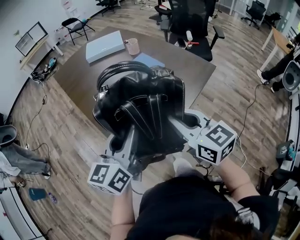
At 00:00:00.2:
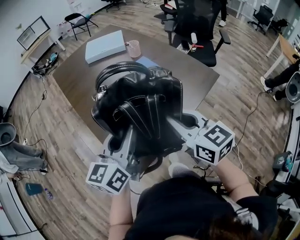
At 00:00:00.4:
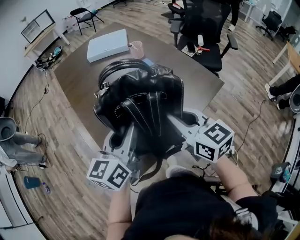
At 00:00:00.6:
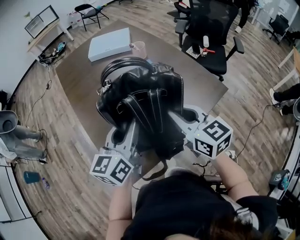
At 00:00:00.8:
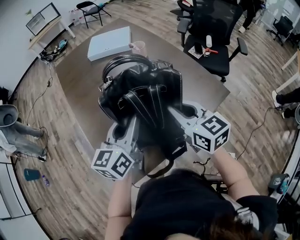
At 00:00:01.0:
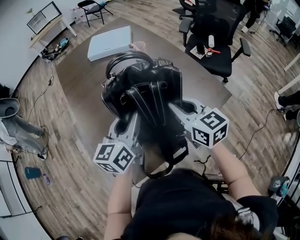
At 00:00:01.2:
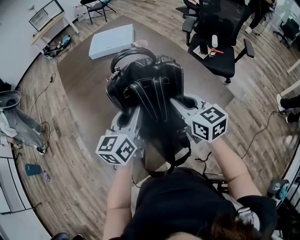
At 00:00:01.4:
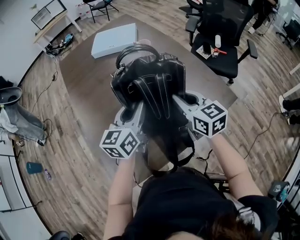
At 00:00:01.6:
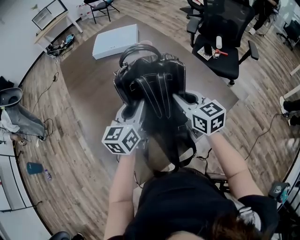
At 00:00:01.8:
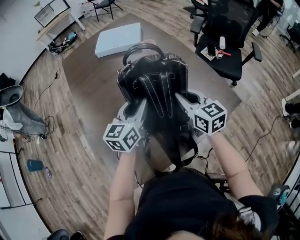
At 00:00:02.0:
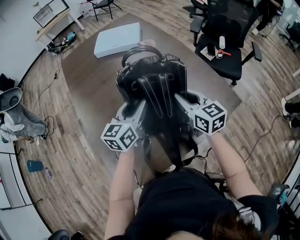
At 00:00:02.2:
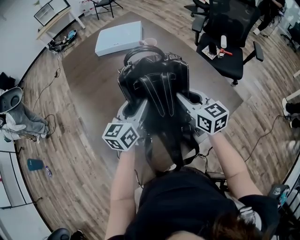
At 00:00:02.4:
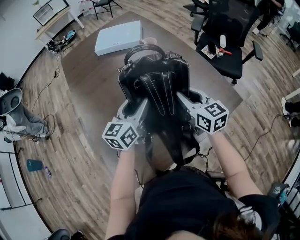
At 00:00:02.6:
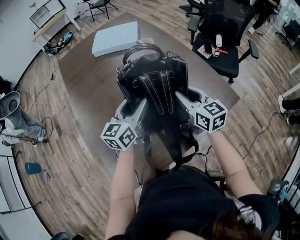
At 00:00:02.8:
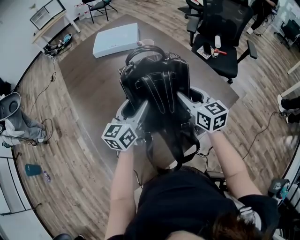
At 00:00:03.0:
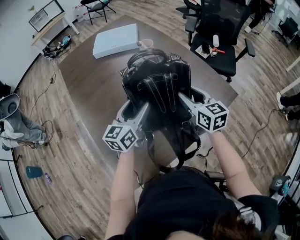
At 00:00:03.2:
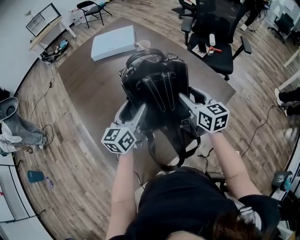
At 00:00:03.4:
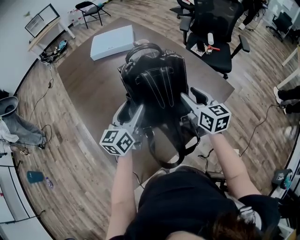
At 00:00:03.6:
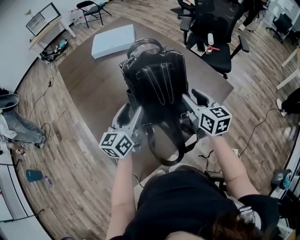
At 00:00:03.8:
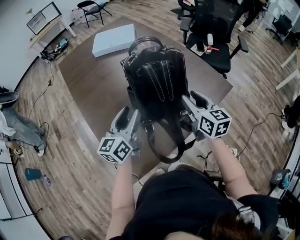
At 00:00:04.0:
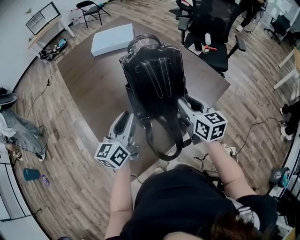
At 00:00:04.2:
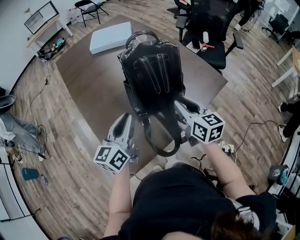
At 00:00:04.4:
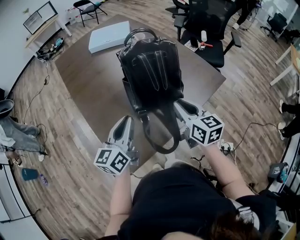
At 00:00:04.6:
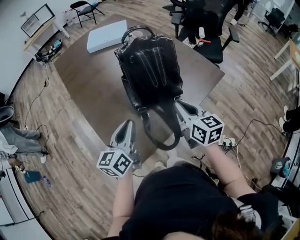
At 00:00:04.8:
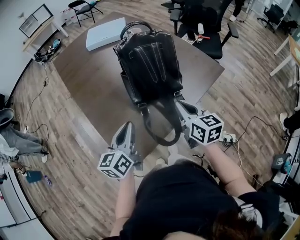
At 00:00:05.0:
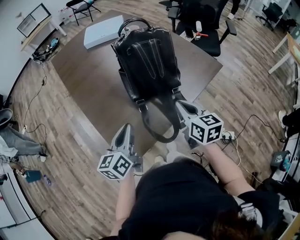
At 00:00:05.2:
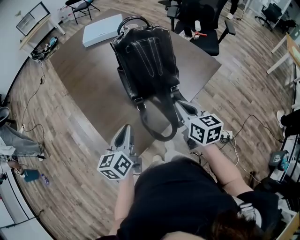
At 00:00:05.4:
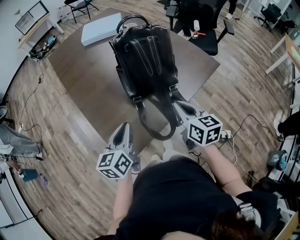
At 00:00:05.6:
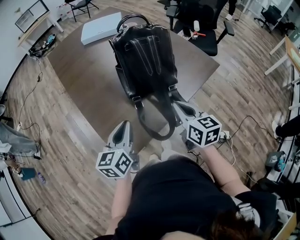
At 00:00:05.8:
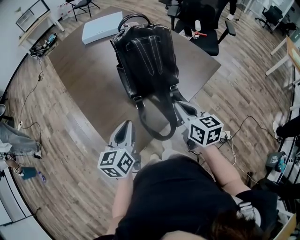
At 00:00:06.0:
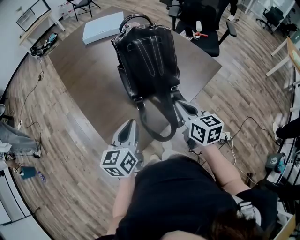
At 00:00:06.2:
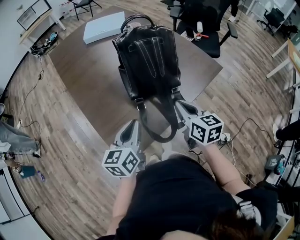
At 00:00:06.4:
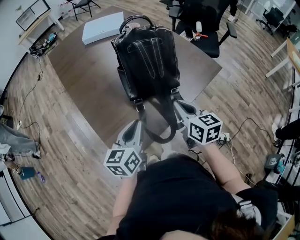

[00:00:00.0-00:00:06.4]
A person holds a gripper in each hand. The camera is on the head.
00:00:00.0 to 00:00:01.6: Both grippers travel together forward and to the right, some 30 cm.
00:00:01.6 to 00:00:03.2: The left gripper opens; the right gripper opens up.
00:00:03.2 to 00:00:04.8: The grippers both shift backward by roughly 20 cm. The left gripper closes; the right gripper closes its fingers.
00:00:04.8 to 00:00:06.4: There are only small adjustments of the grippers.

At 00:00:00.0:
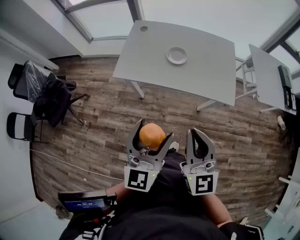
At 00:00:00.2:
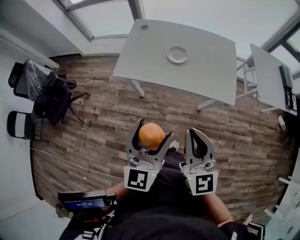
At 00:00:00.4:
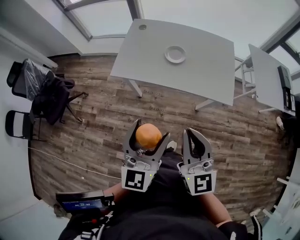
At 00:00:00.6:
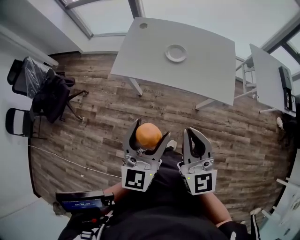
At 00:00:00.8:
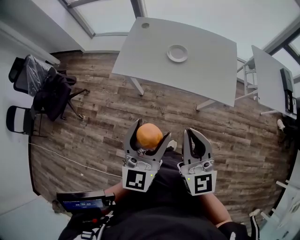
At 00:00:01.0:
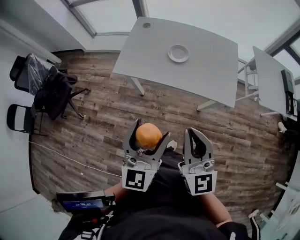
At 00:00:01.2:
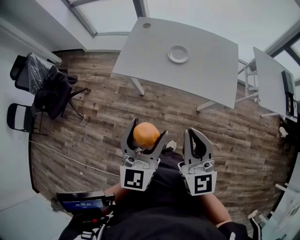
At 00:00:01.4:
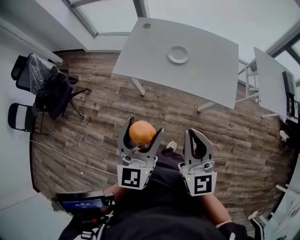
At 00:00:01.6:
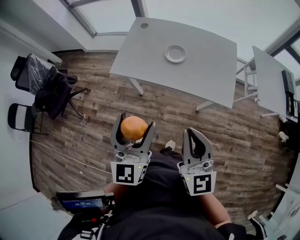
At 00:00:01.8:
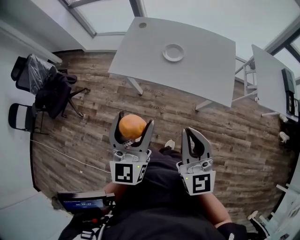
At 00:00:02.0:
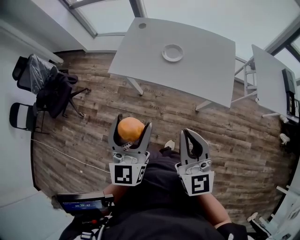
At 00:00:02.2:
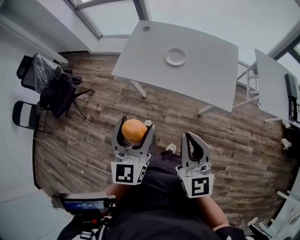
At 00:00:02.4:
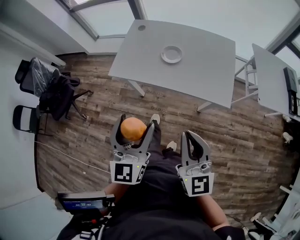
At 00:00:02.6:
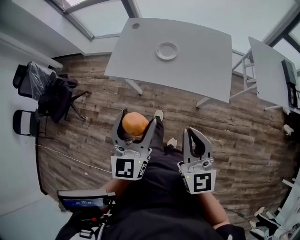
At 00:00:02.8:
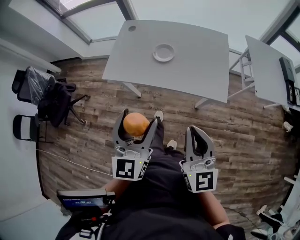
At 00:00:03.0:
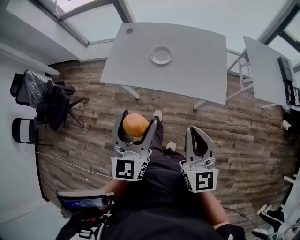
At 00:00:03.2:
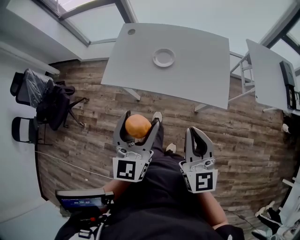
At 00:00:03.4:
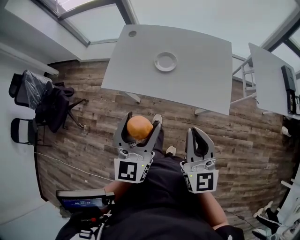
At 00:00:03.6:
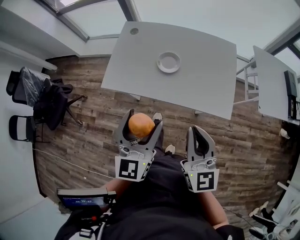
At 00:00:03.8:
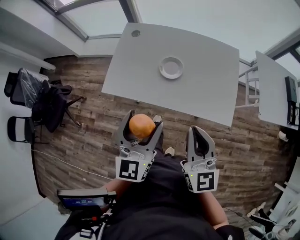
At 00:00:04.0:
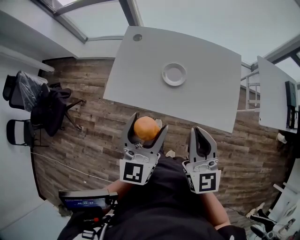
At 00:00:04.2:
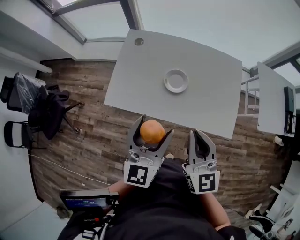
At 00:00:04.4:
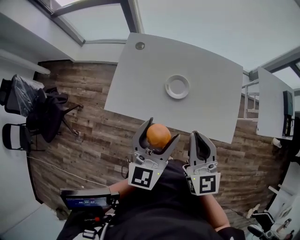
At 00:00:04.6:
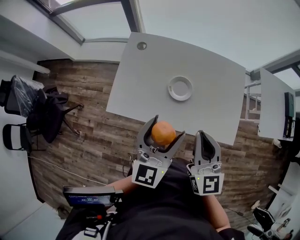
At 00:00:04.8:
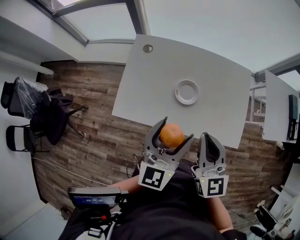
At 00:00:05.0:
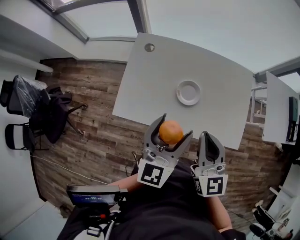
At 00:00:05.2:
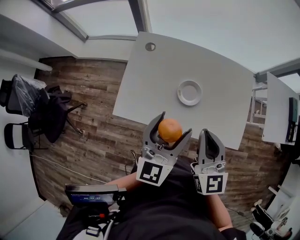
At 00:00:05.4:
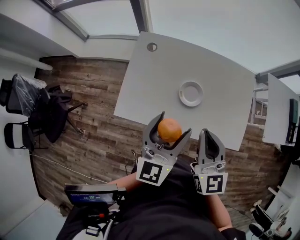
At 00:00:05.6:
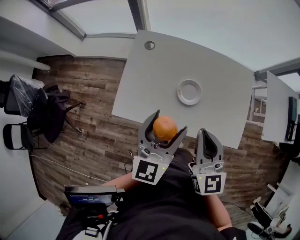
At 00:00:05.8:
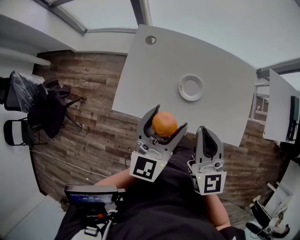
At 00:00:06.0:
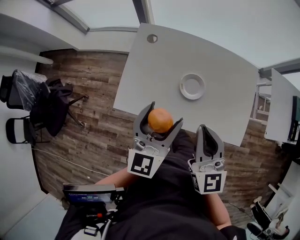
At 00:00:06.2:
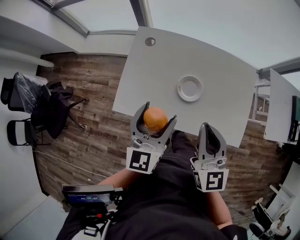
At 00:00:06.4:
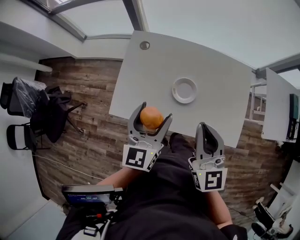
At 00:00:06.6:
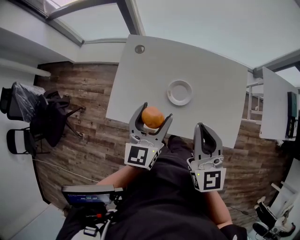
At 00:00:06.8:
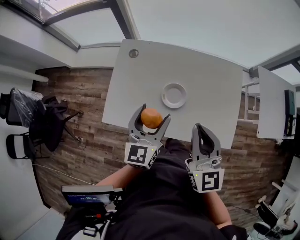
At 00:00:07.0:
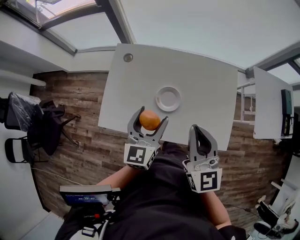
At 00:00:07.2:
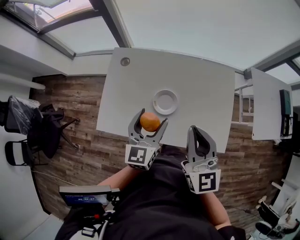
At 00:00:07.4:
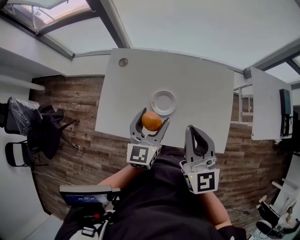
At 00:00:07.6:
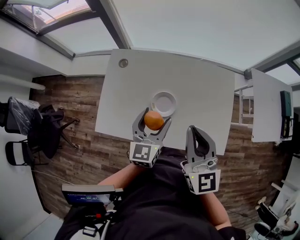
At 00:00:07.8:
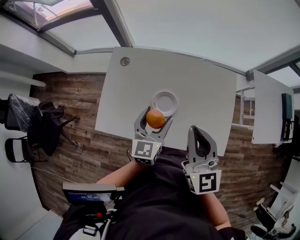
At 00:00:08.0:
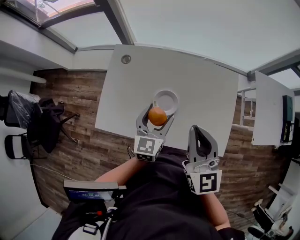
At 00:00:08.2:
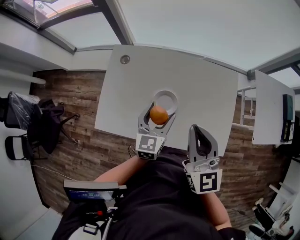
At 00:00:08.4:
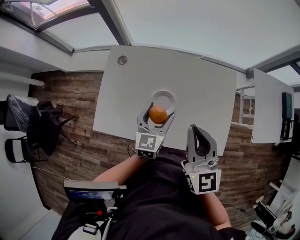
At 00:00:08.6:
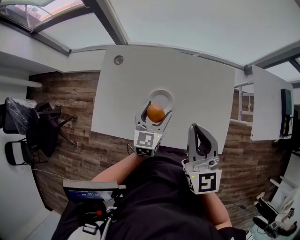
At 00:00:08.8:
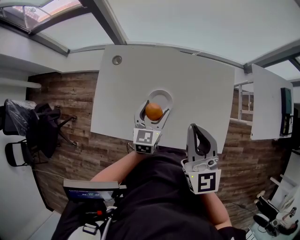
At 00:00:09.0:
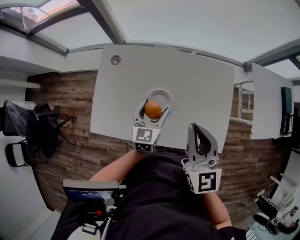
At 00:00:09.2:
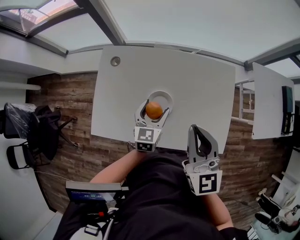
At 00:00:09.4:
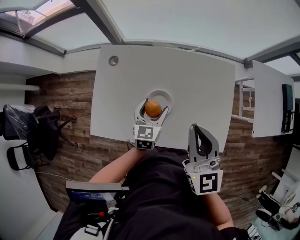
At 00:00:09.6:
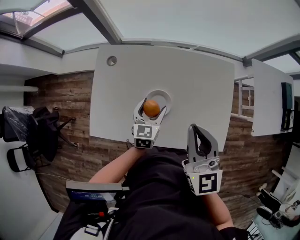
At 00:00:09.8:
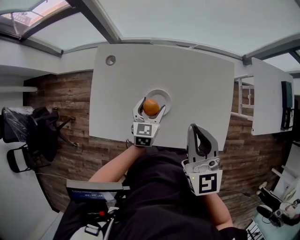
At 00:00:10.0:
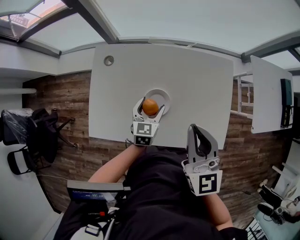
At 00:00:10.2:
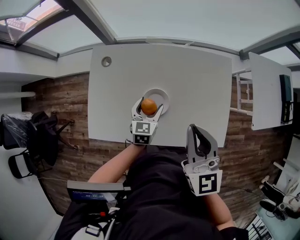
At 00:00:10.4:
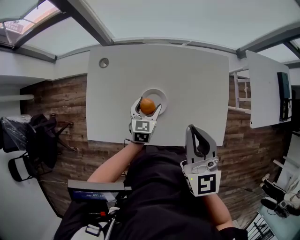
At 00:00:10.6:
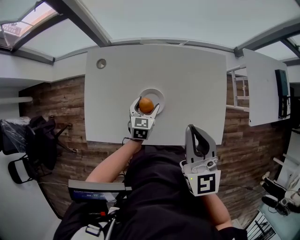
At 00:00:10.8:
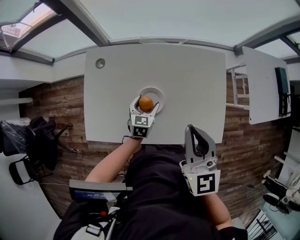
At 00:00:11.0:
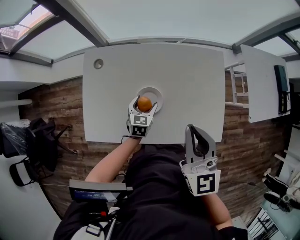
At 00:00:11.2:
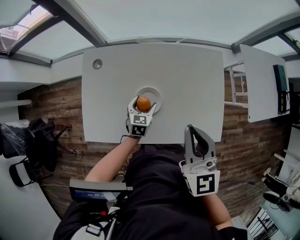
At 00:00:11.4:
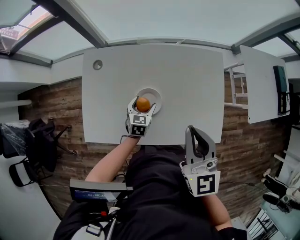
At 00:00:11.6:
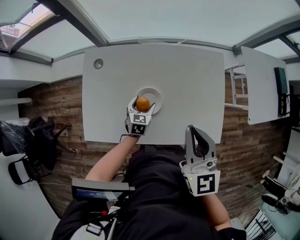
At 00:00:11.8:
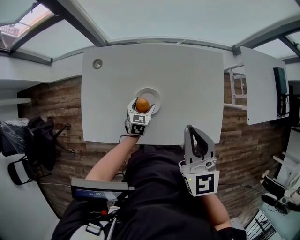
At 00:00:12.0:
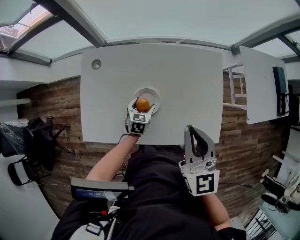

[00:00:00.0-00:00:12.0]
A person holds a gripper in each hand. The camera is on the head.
00:00:00.0 to 00:00:01.6: There are only small adjustments of the grippers.
00:00:01.6 to 00:00:03.0: Both grippers travel together to the right, approximately 10 cm.
00:00:03.0 to 00:00:04.4: The left gripper moves forward, roughly 20 cm. Meanwhile the right gripper shifts some 25 cm forward and to the left.
00:00:04.4 to 00:00:06.0: The grippers both shift forward and to the left by approximately 10 cm.
00:00:06.0 to 00:00:07.6: The left gripper moves to the right, forward and downward, some 15 cm. Meanwhile the right gripper heads to the right and forward, covering some 10 cm.
00:00:07.6 to 00:00:09.0: The left gripper is displaced downward and forward by roughly 10 cm.
00:00:09.0 to 00:00:10.4: The left gripper is displaced downward by some 10 cm.
00:00:10.4 to 00:00:12.0: The left gripper travels downward by about 10 cm.

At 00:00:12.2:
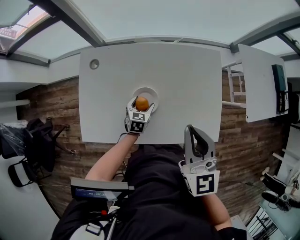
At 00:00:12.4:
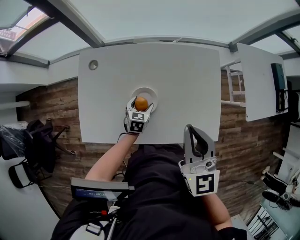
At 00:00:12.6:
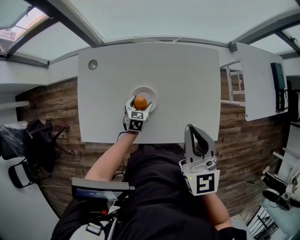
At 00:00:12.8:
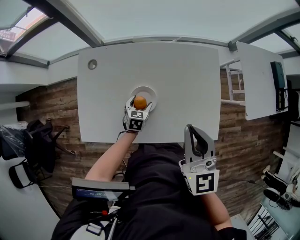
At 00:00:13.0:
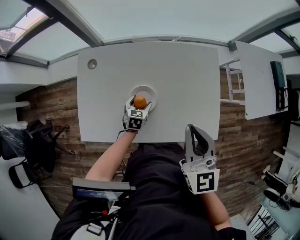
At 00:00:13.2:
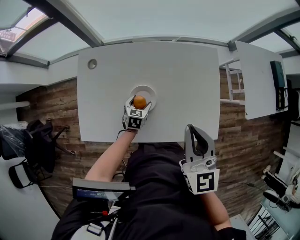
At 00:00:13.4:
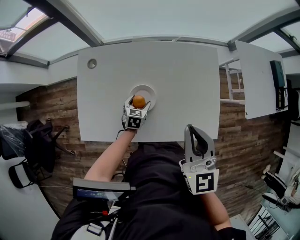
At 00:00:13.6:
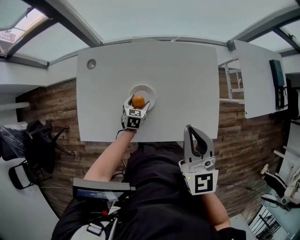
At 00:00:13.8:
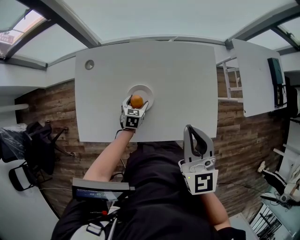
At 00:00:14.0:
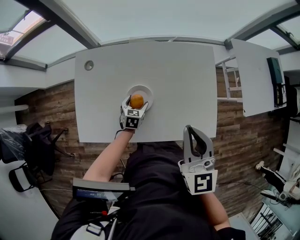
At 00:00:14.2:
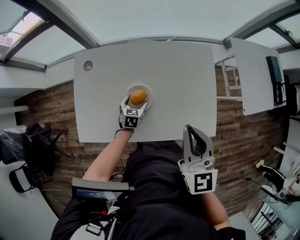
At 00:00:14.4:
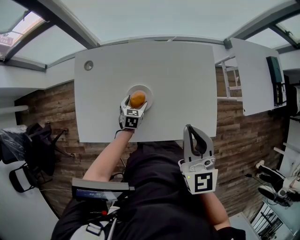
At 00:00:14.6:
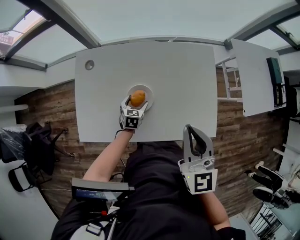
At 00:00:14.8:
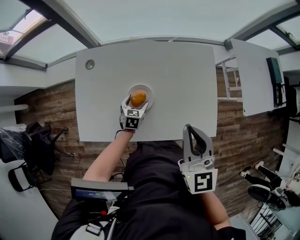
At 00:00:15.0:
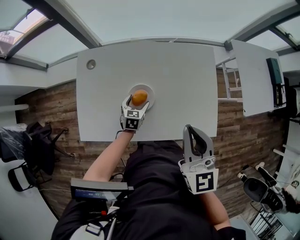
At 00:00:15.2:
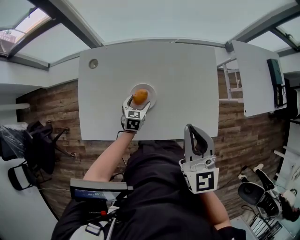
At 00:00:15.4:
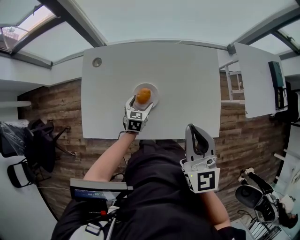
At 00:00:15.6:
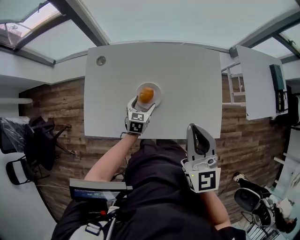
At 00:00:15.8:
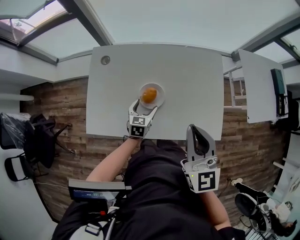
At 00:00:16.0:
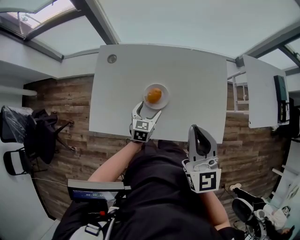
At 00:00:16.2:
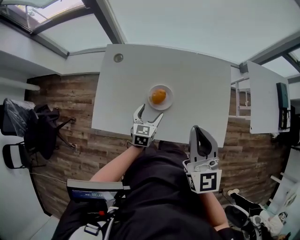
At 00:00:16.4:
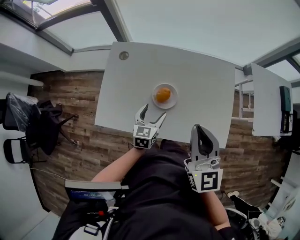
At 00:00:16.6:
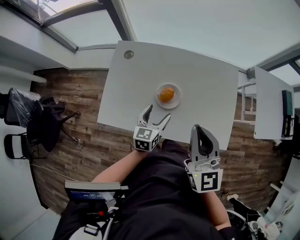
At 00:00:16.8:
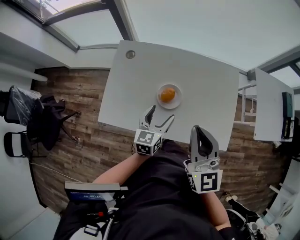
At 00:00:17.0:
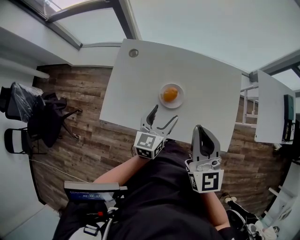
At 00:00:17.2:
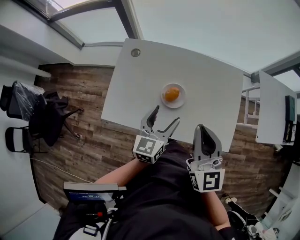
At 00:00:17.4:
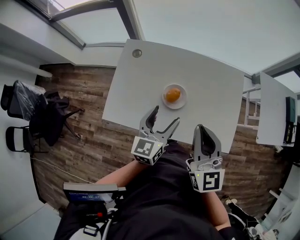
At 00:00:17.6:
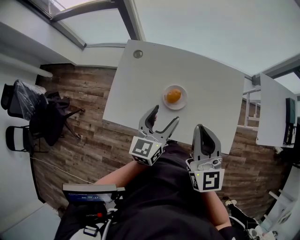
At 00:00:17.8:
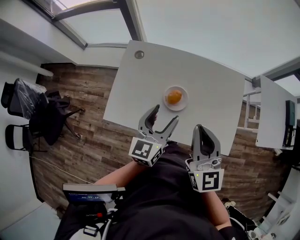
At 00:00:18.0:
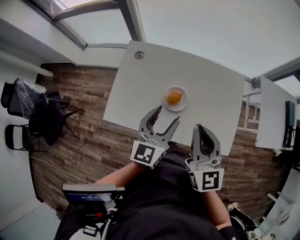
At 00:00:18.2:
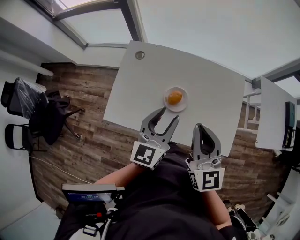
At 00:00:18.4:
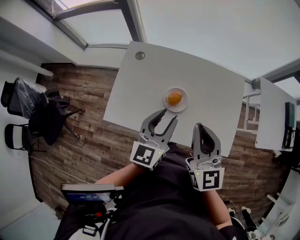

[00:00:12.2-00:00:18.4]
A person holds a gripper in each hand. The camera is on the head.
00:00:12.2 to 00:00:15.4: The grippers move only a little.
00:00:15.4 to 00:00:16.8: The left gripper moves upward and backward, some 20 cm, and changes its angle by roughly 30 degrees. The right gripper travels to the left by about 5 cm.
00:00:16.8 to 00:00:18.4: The left gripper goes roughly 15 cm upward, and closes its fingers.
